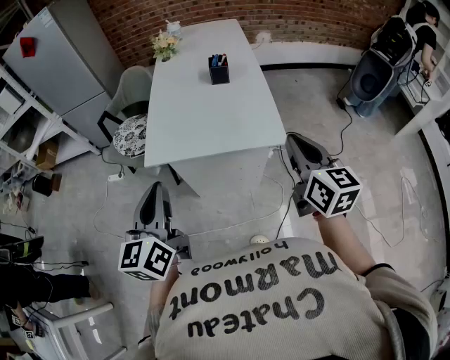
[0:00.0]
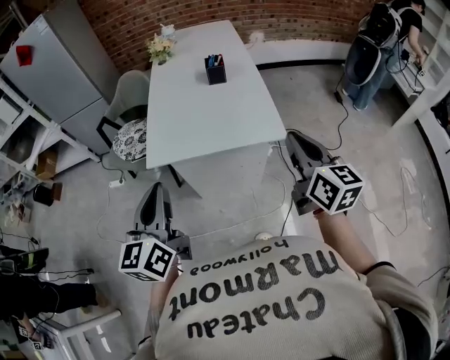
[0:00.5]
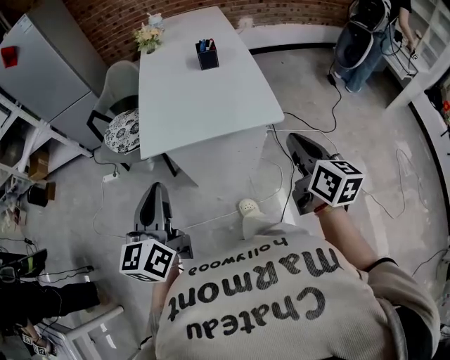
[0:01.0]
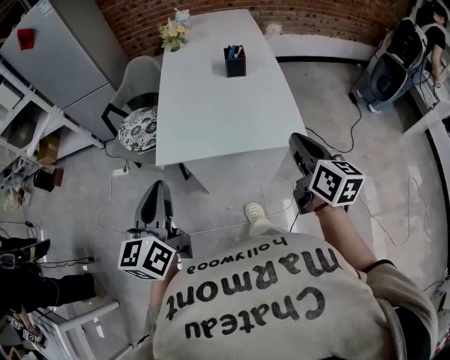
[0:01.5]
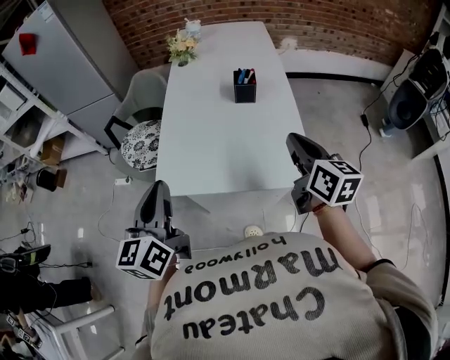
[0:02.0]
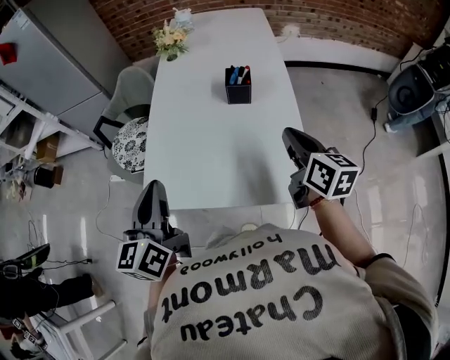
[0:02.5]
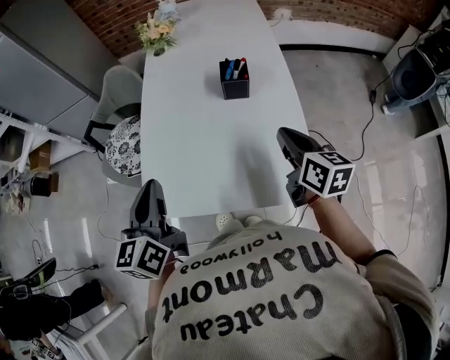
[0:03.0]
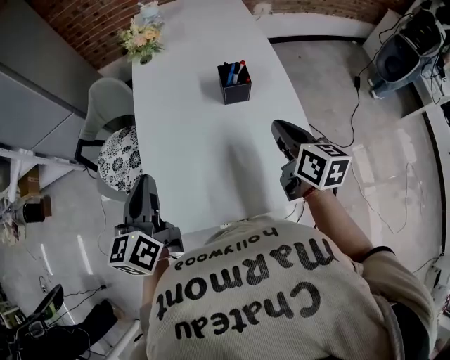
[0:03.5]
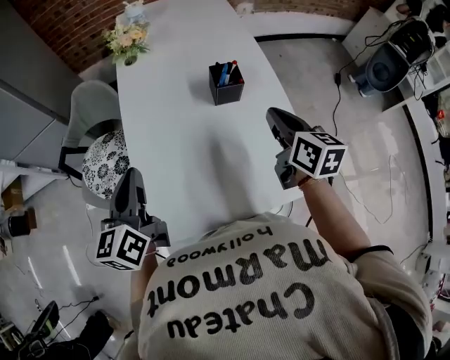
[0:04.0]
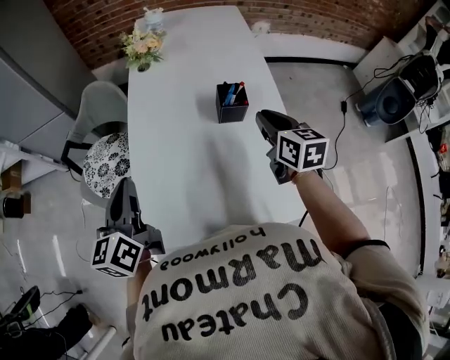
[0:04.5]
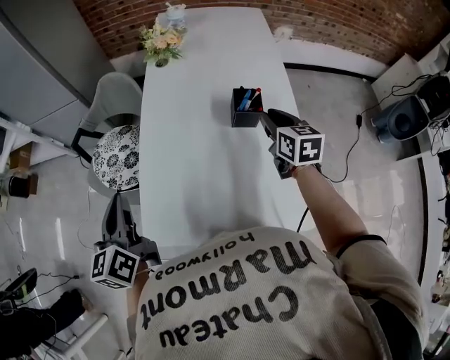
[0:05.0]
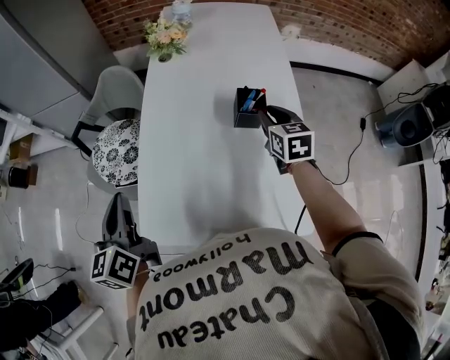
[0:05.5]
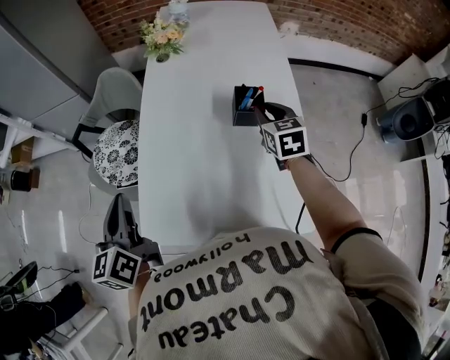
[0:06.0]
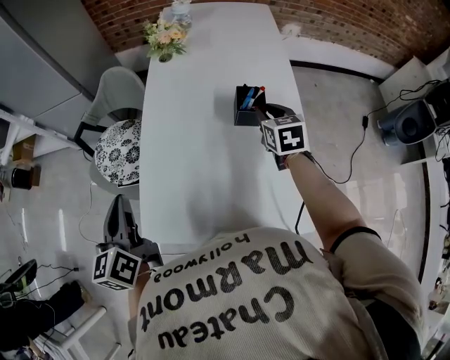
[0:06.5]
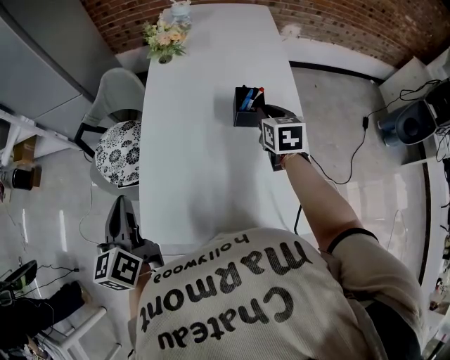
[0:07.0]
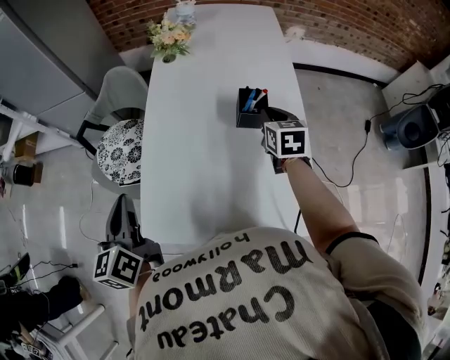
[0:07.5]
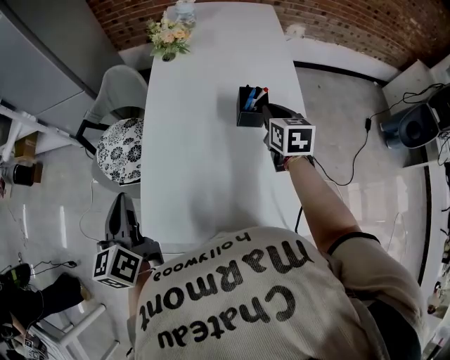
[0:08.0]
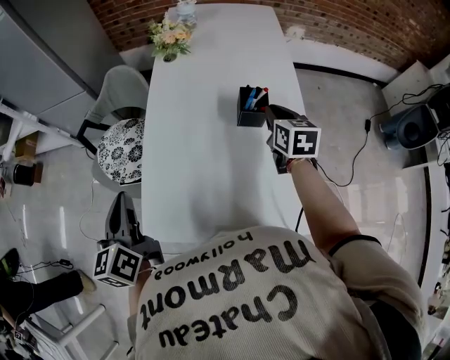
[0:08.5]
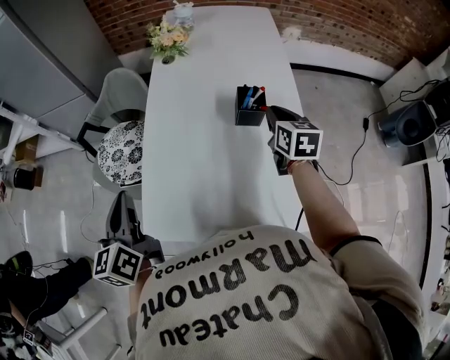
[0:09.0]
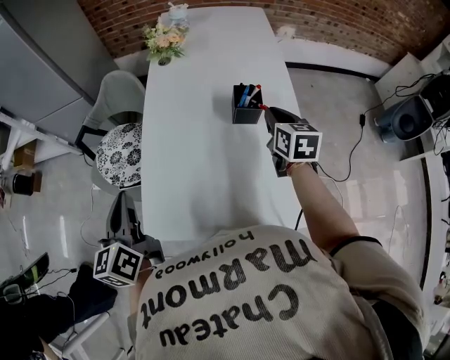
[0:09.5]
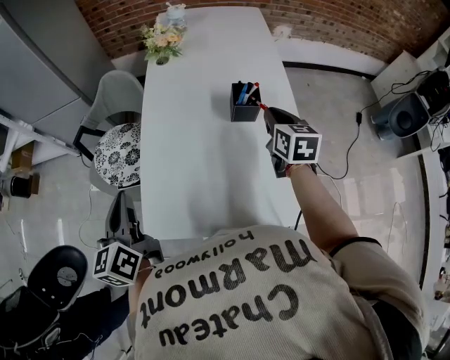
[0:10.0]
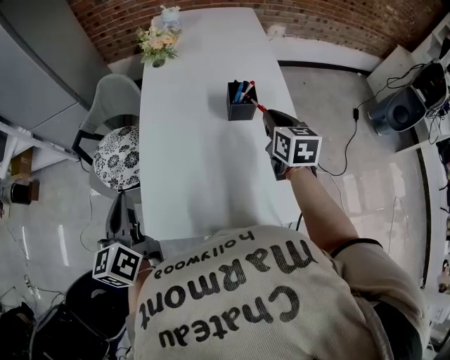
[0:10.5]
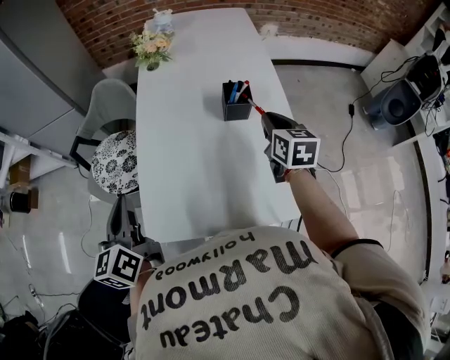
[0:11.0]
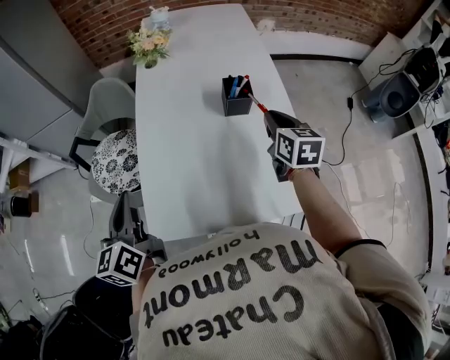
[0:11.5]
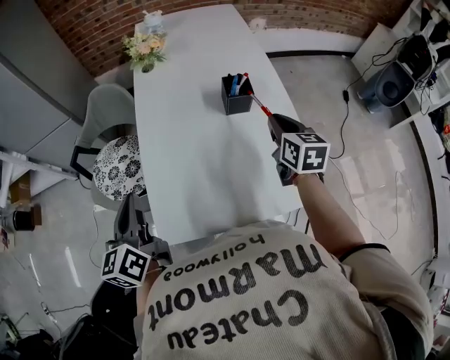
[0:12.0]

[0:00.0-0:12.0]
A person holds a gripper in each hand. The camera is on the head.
0:00.0 to 0:02.0: The grippers both shift forward by roughly 20 cm.
0:02.0 to 0:04.0: The left gripper moves forward, some 25 cm. Meanwhile the right gripper moves forward and downward, about 20 cm.
0:04.0 to 0:06.0: The right gripper moves forward and downward, some 15 cm, changes its angle by some 30 degrees, and opens up, while the left gripper changes place by roughly 5 cm, and changes its angle by roughly 20 degrees.
0:06.0 to 0:08.0: There are only small adjustments of the grippers.
0:08.0 to 0:10.0: The right gripper is displaced backward by about 5 cm.
0:10.0 to 0:12.0: The right gripper travels backward by roughly 5 cm.

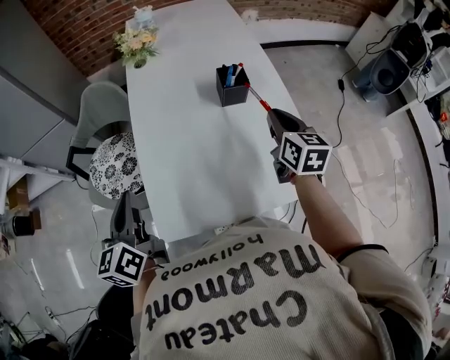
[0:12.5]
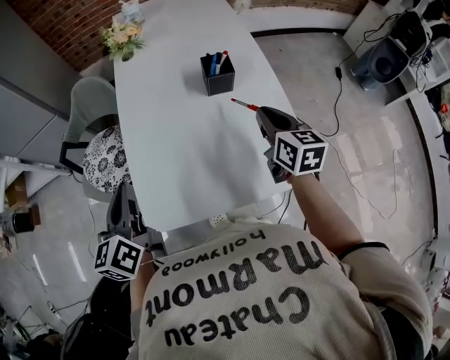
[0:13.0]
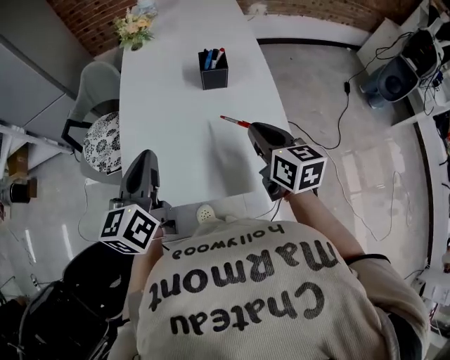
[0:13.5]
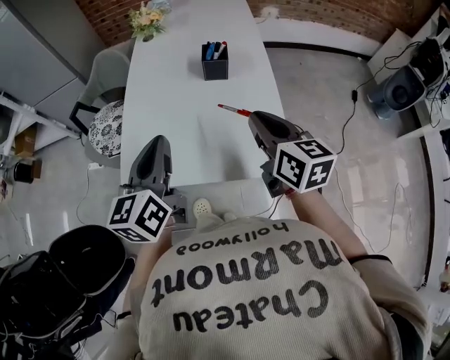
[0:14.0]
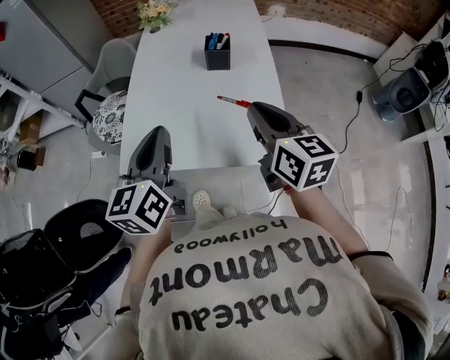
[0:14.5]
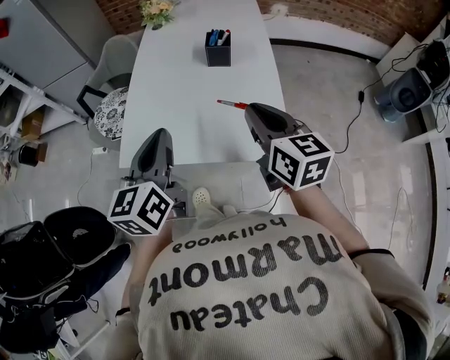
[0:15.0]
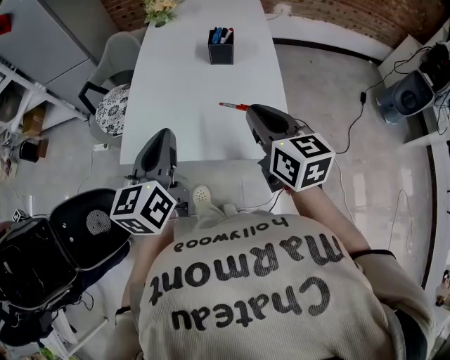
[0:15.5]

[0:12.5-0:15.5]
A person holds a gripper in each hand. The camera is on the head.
0:12.5 to 0:14.0: The right gripper goes approximately 15 cm backward and upward, and turns by some 20 degrees. Meanwhile the left gripper heads to the right, covering roughly 20 cm.
0:14.0 to 0:15.5: The left gripper travels backward by approximately 5 cm. The right gripper moves about 5 cm.

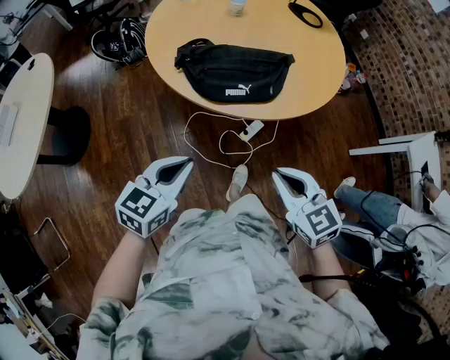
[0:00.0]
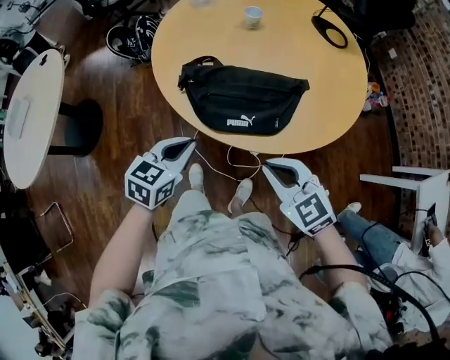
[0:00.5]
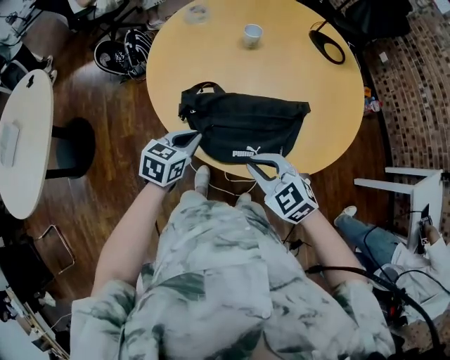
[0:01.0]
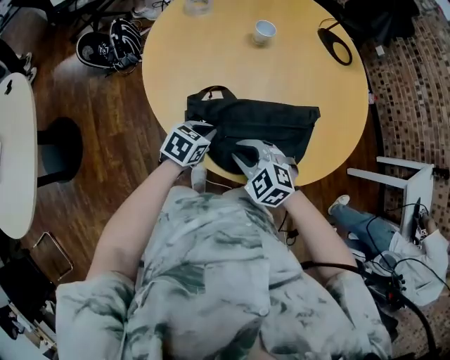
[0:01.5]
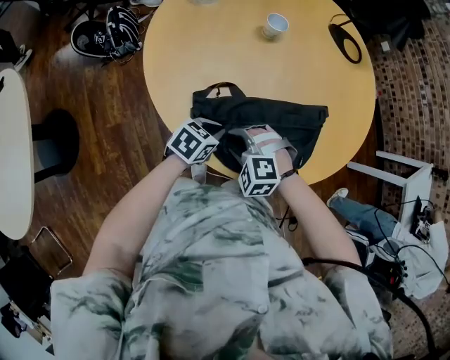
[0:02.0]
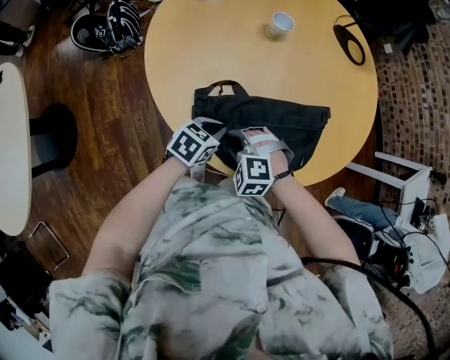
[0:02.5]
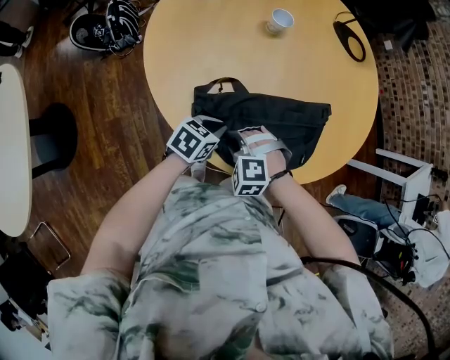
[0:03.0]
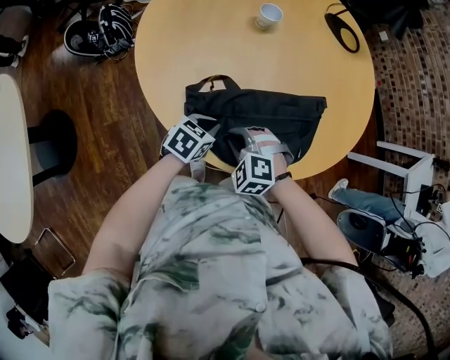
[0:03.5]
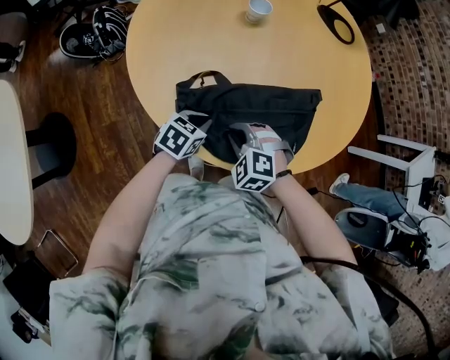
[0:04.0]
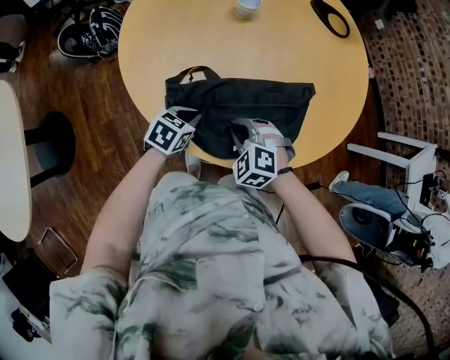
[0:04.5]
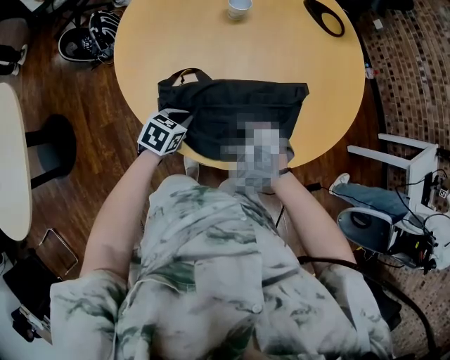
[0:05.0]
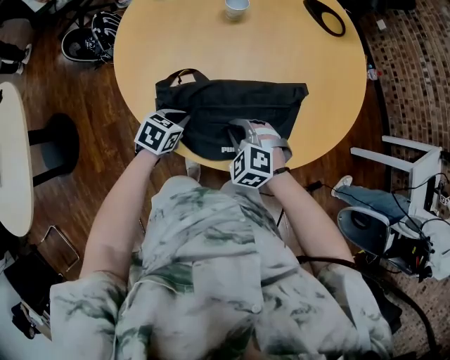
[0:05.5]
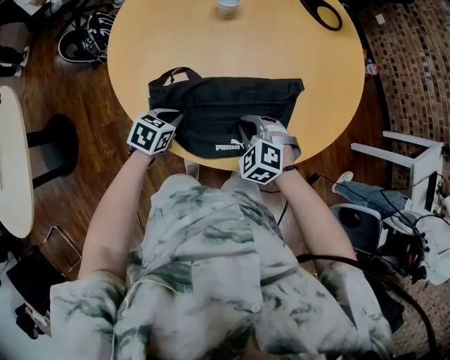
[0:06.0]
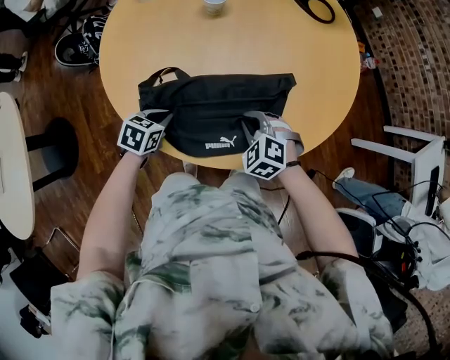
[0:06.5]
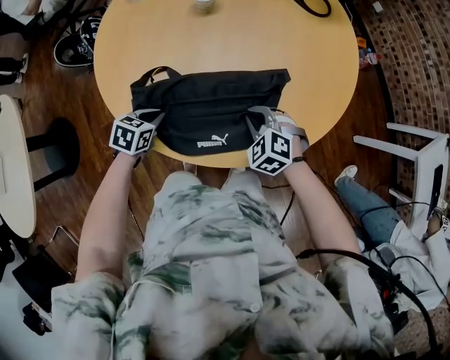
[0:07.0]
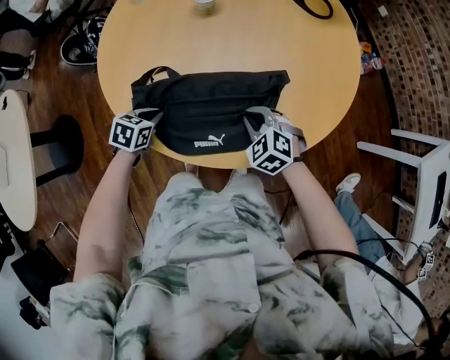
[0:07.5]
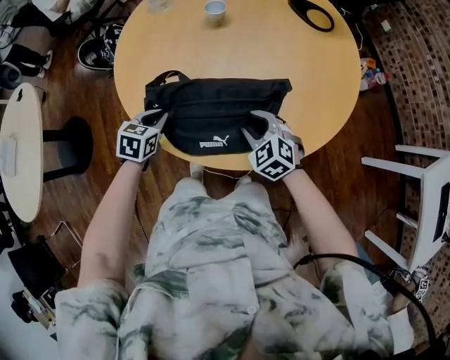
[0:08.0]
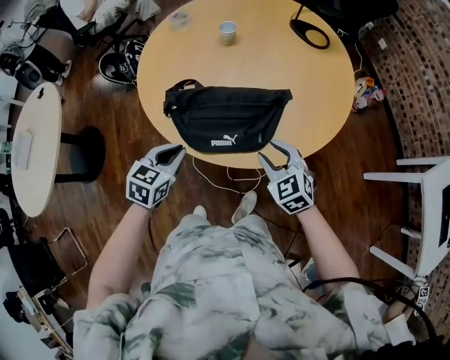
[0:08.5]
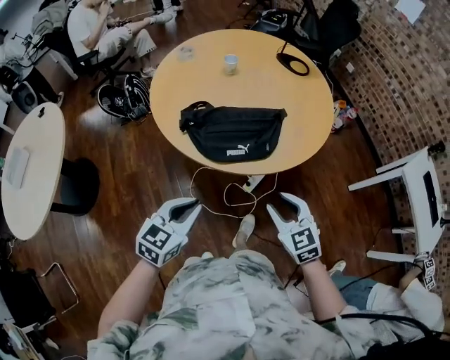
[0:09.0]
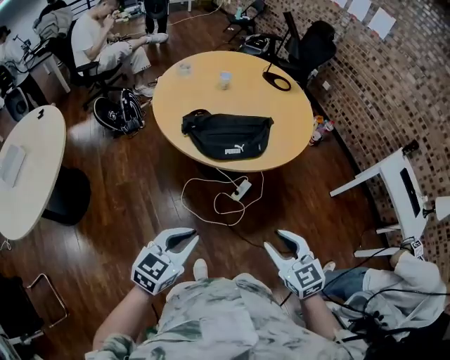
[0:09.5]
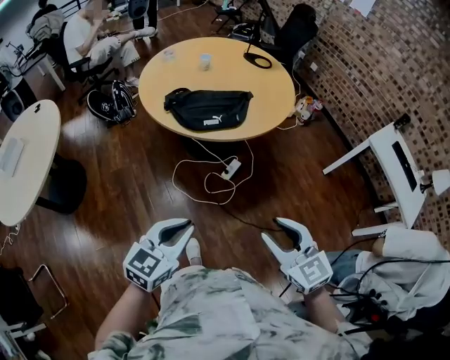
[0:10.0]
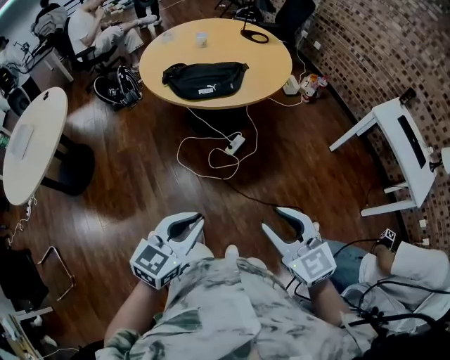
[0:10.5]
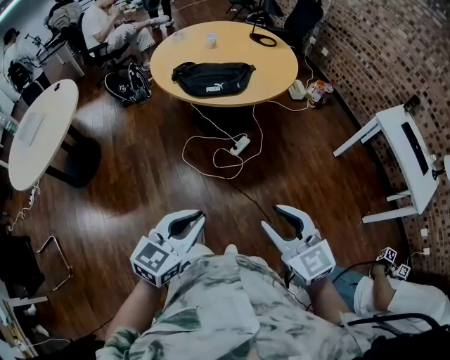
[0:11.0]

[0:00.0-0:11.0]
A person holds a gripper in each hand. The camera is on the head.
0:00.0 to 0:02.0: The right gripper goes about 40 cm forward, downward and to the left, twists approximately 50 degrees counterclockwise, seen from behind, and opens up; the left gripper is displaced forward and downward by some 40 cm, and turns by about 30 degrees.
0:02.0 to 0:03.5: The right gripper closes up.
0:03.5 to 0:05.5: The right gripper moves to the right, about 10 cm.
0:05.5 to 0:07.5: The right gripper heads to the right, covering some 10 cm.
0:07.5 to 0:09.0: The grippers both shift backward and upward by some 35 cm. The left gripper tilts its fingers some 30 degrees upward; the right gripper turns by approximately 30 degrees, and opens.
0:09.0 to 0:11.0: Both grippers are carried backward, approximately 40 cm.

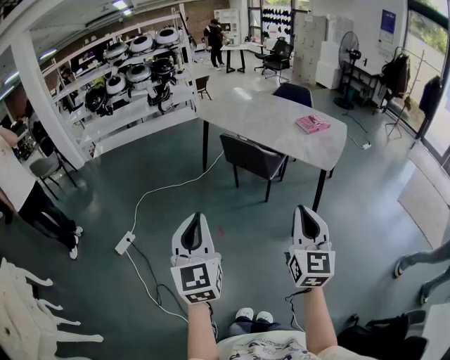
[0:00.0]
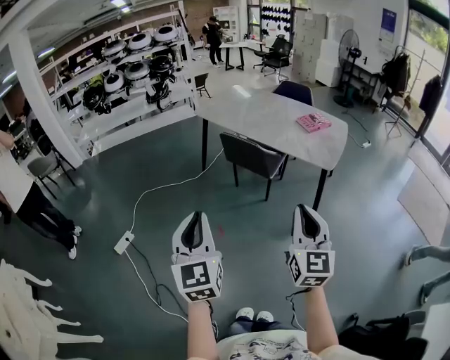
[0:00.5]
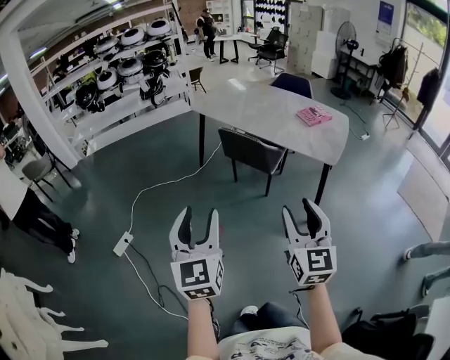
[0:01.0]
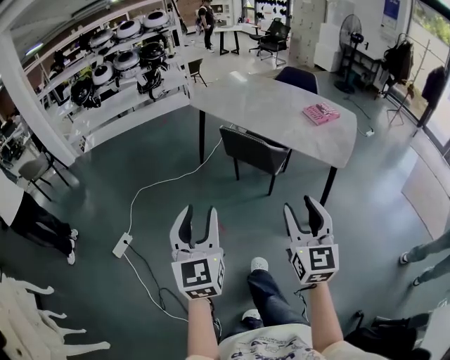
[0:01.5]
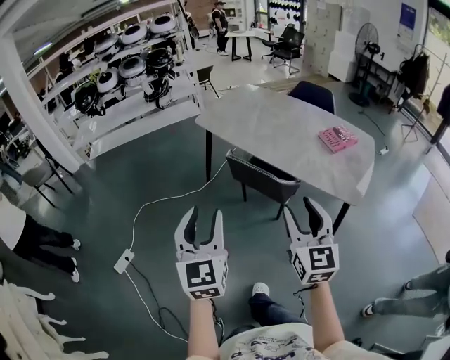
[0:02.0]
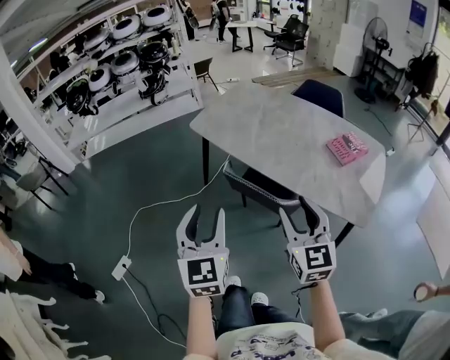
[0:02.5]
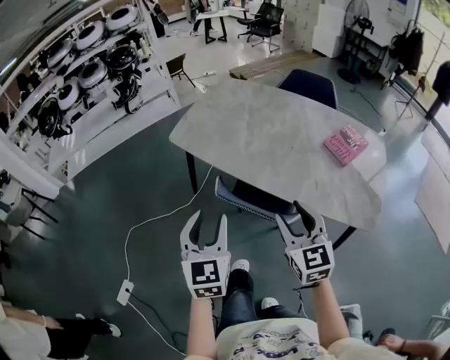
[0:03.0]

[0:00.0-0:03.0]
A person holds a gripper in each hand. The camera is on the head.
0:00.0 to 0:01.5: The grippers both shift forward by approximately 15 cm. The right gripper opens up; the left gripper opens.
0:01.5 to 0:03.0: Both grippers are carried forward, approximately 50 cm.
